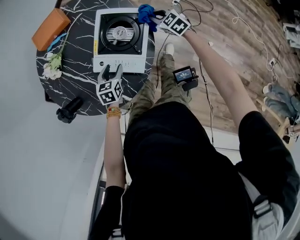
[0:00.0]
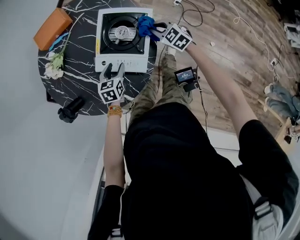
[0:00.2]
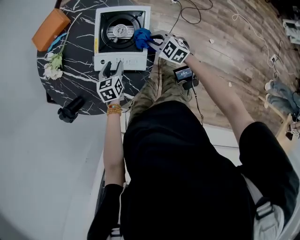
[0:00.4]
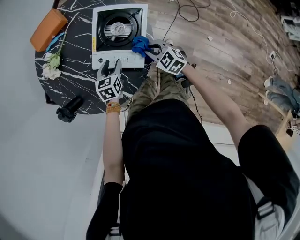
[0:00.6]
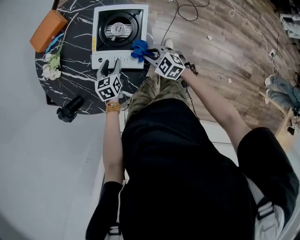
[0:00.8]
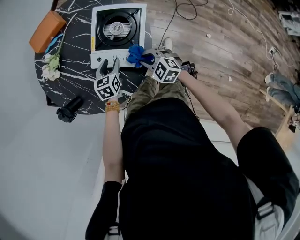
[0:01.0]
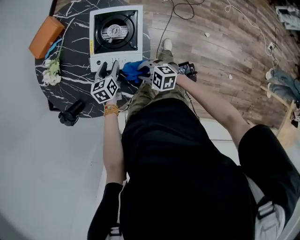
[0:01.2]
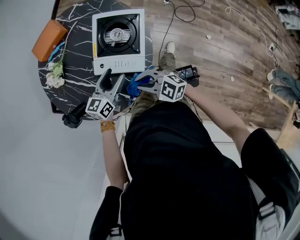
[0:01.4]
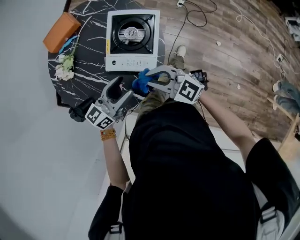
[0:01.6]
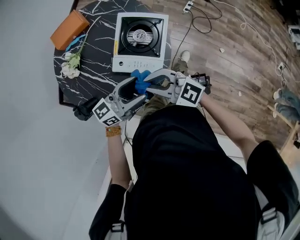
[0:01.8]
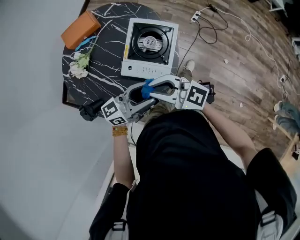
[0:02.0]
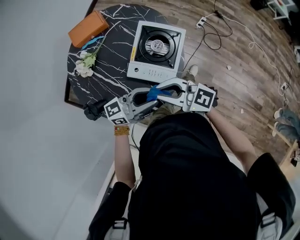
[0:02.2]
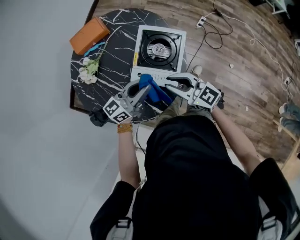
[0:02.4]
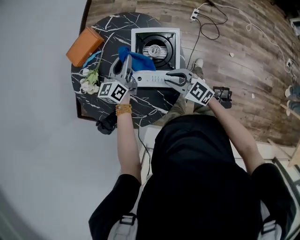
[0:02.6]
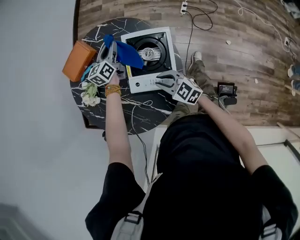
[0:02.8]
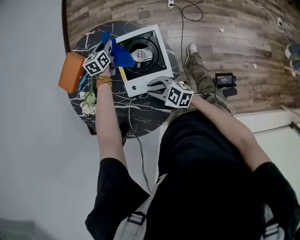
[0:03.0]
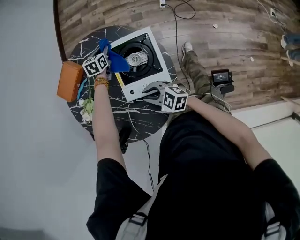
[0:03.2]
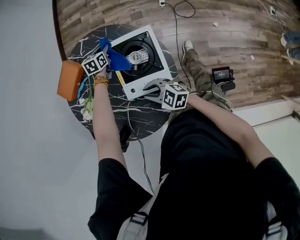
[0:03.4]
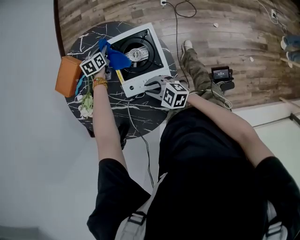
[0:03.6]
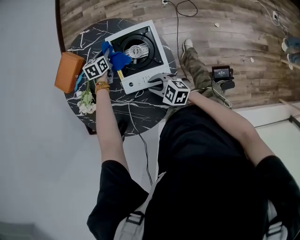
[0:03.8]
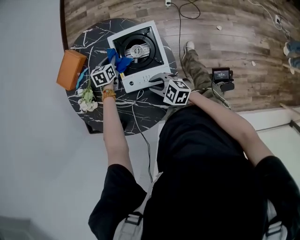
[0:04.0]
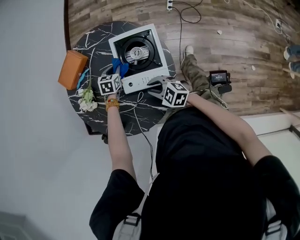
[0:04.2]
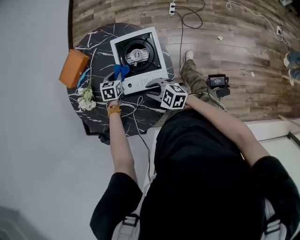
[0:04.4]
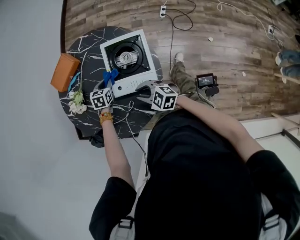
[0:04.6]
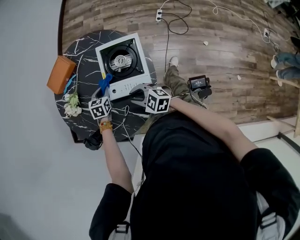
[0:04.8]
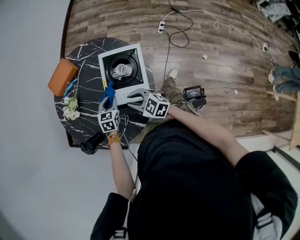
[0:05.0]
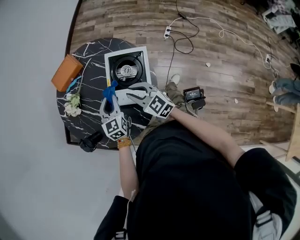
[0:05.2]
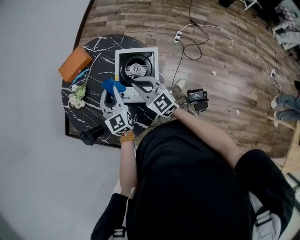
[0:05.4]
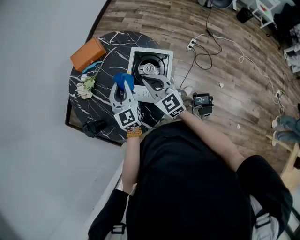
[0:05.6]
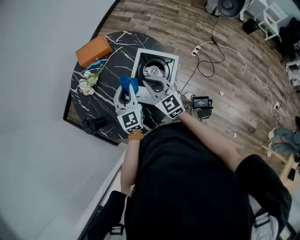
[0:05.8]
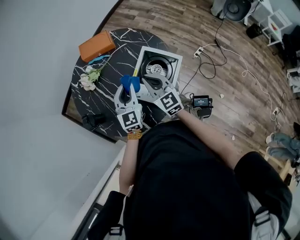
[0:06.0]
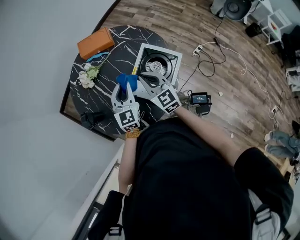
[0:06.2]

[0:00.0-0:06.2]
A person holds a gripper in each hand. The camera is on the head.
0:00.0 to 0:01.6: The left gripper moves upward, some 20 cm, and points its fingers approximately 40 degrees further upward. The right gripper travels backward, to the left and upward by approximately 35 cm, and changes its angle by some 30 degrees.
0:01.6 to 0:03.2: The left gripper moves approximately 40 cm, tilts its fingers approximately 40 degrees downward, and closes its fingers; the right gripper shifts by about 15 cm, and swivels roughly 20 degrees.
0:03.2 to 0:04.6: The left gripper heads backward and to the left, covering about 20 cm.
0:04.6 to 0:06.2: The left gripper heads upward, covering about 20 cm, and points its fingers some 40 degrees further upward. The right gripper goes about 15 cm upward and forward, and rotates some 20 degrees.

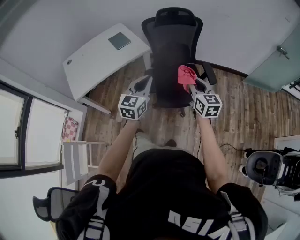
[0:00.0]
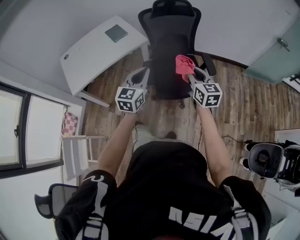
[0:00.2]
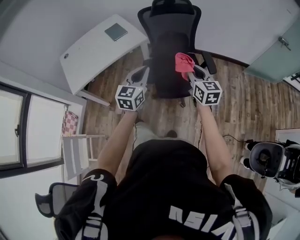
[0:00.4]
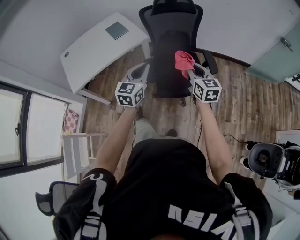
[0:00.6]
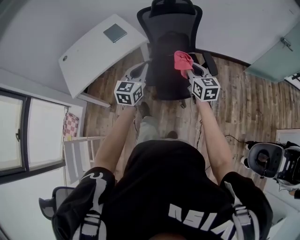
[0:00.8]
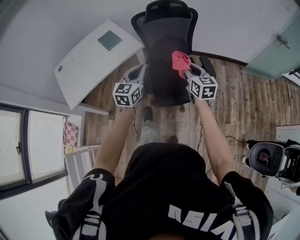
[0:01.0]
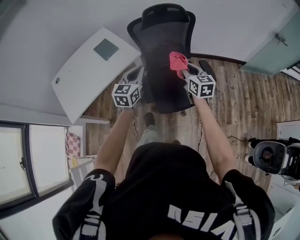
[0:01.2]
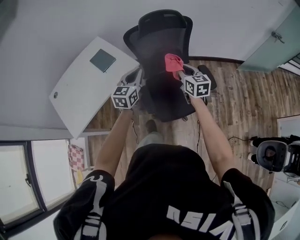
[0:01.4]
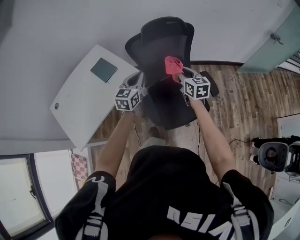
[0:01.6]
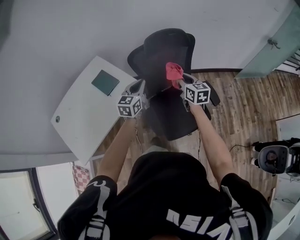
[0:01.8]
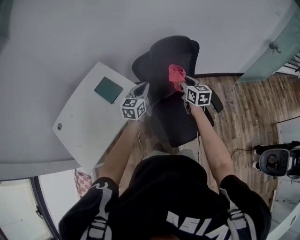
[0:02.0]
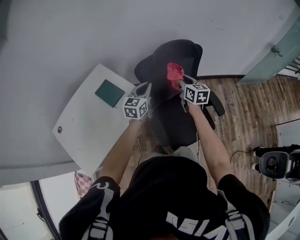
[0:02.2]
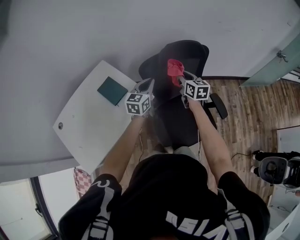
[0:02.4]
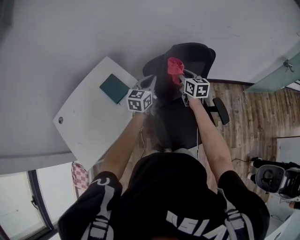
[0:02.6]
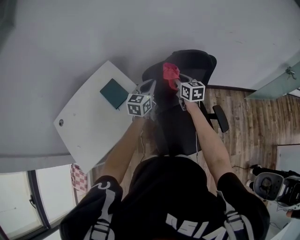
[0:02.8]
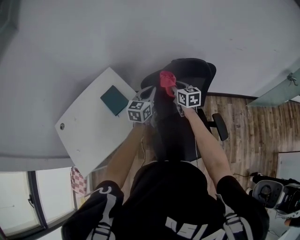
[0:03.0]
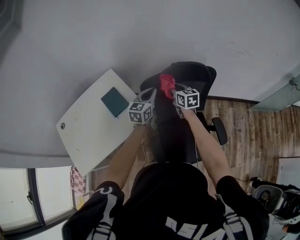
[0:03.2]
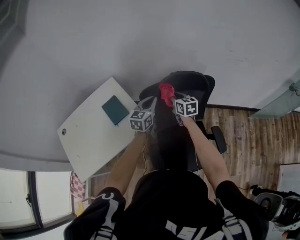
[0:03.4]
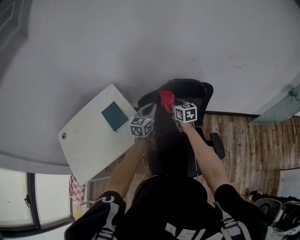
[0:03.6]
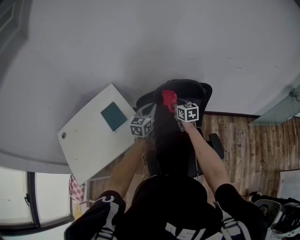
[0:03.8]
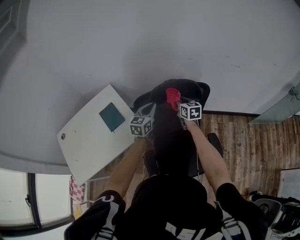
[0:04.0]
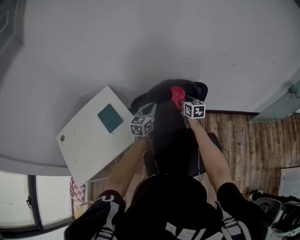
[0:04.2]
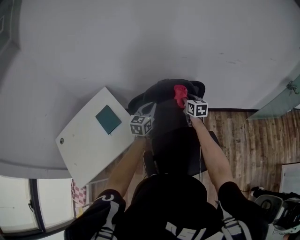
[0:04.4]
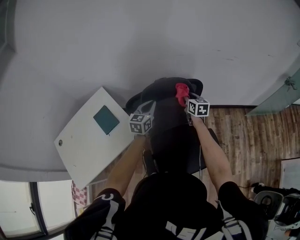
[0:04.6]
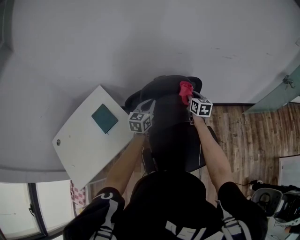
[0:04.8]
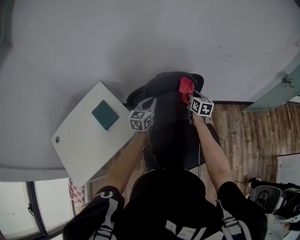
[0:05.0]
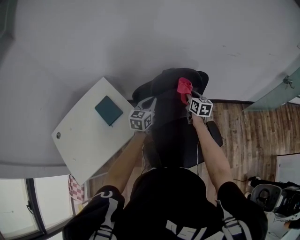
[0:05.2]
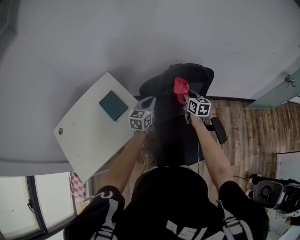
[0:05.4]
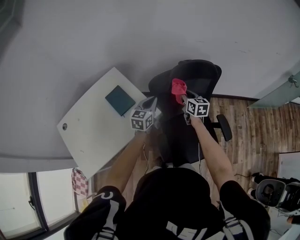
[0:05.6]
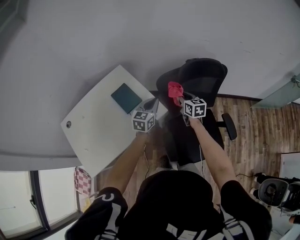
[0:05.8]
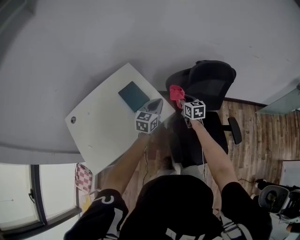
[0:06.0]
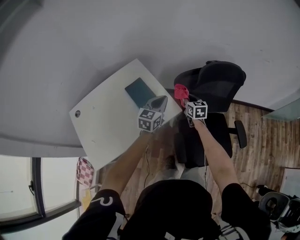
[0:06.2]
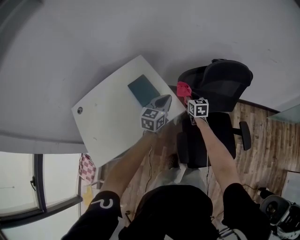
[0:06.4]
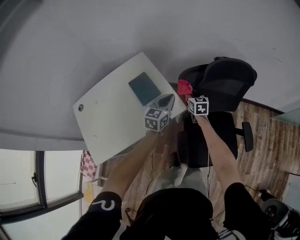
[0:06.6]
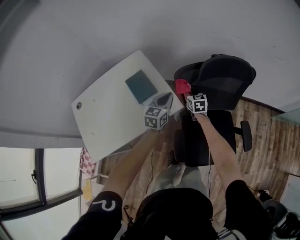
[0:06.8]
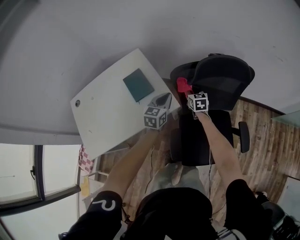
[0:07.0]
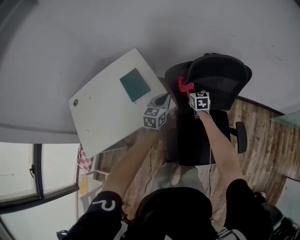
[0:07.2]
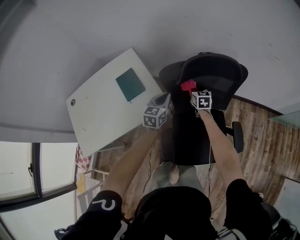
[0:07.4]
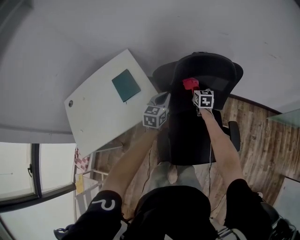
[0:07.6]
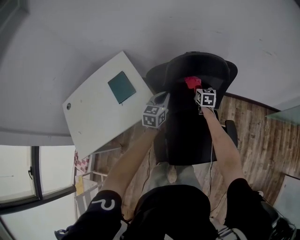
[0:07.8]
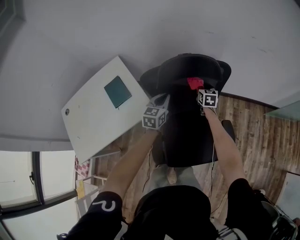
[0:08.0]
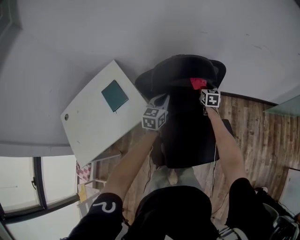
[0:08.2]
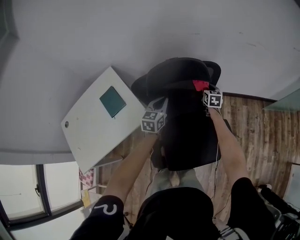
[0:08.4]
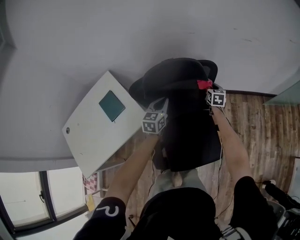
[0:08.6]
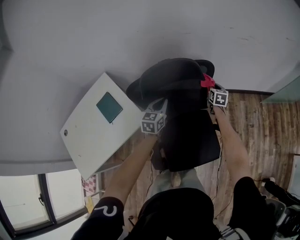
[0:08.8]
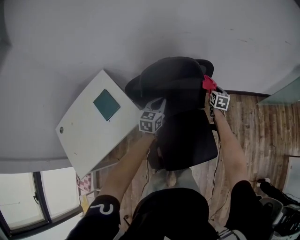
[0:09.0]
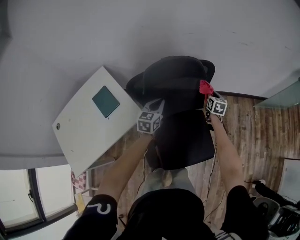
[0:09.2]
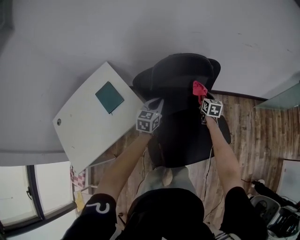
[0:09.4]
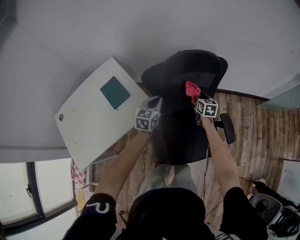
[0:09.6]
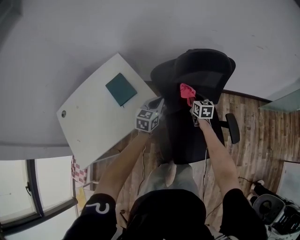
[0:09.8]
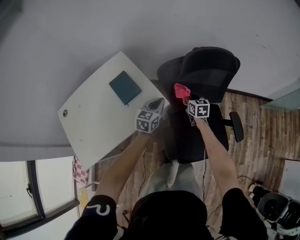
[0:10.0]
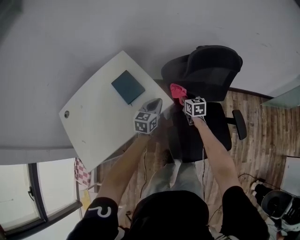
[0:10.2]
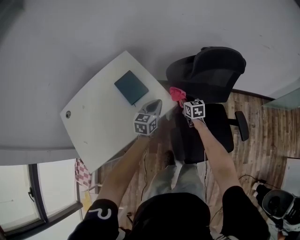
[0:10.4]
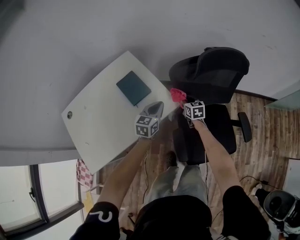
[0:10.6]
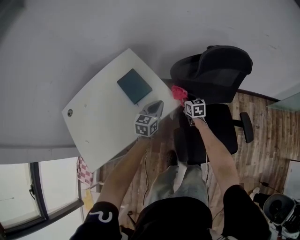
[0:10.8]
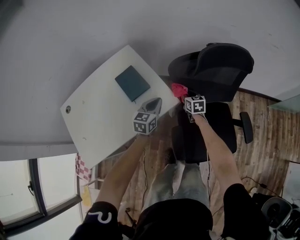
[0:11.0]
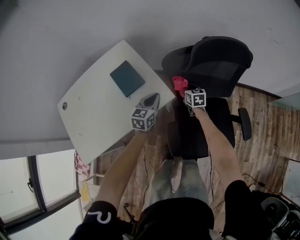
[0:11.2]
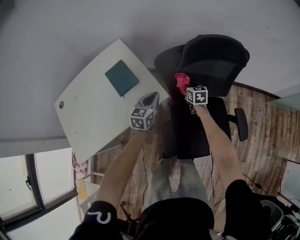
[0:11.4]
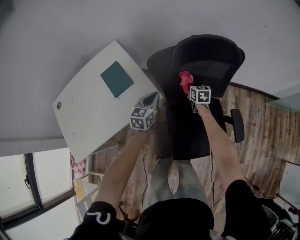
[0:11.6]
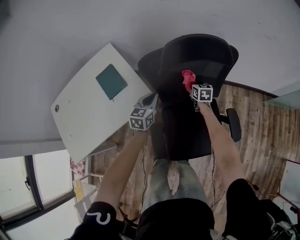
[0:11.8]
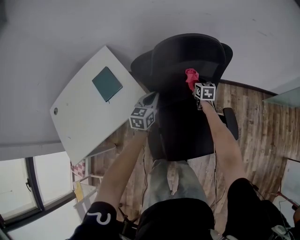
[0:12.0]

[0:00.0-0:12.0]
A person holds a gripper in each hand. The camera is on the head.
0:00.0 to 0:01.6: Both grippers travel together forward, about 35 cm.
0:01.6 to 0:03.0: The left gripper is displaced forward by approximately 20 cm; the right gripper shifts some 25 cm forward and to the left.
0:03.0 to 0:04.4: The right gripper moves to the right, roughly 15 cm; the left gripper goes some 10 cm to the right.
0:04.4 to 0:06.0: Both grippers travel together to the left and backward, approximately 25 cm.
0:06.0 to 0:07.6: The left gripper goes some 15 cm to the right and downward. The right gripper shifts about 20 cm to the right, forward and downward.
0:07.6 to 0:09.0: The left gripper moves to the right, about 10 cm; the right gripper shifts approximately 30 cm to the right, and changes its angle by about 20 degrees.
0:09.0 to 0:10.4: The right gripper is displaced to the left by some 40 cm, and swivels some 30 degrees. The left gripper heads to the left and backward, covering approximately 25 cm.
0:10.4 to 0:12.0: The left gripper heads to the right, covering about 15 cm. The right gripper moves to the right and forward, roughly 25 cm.

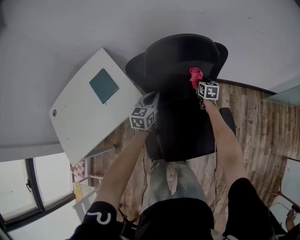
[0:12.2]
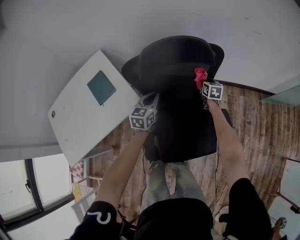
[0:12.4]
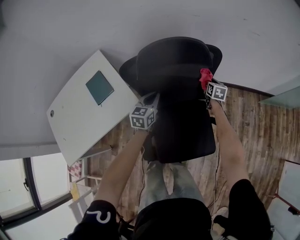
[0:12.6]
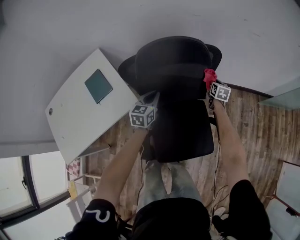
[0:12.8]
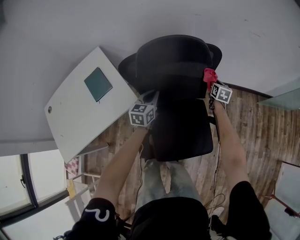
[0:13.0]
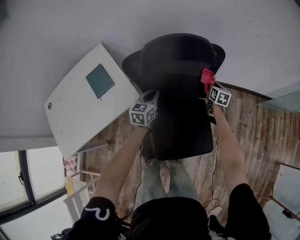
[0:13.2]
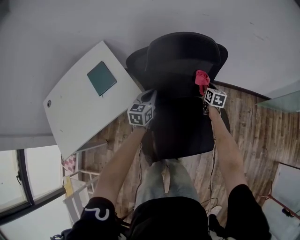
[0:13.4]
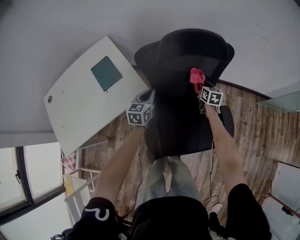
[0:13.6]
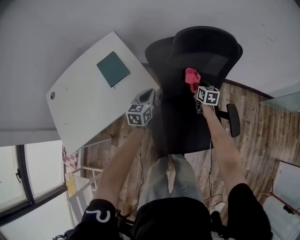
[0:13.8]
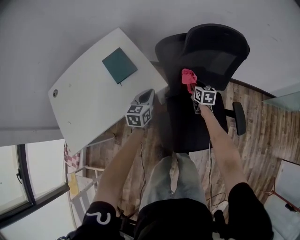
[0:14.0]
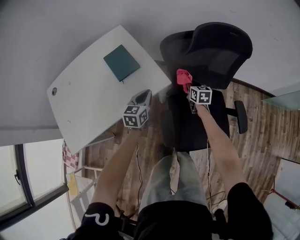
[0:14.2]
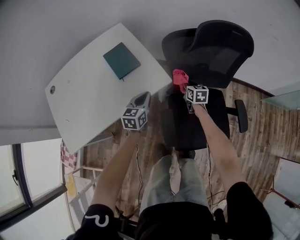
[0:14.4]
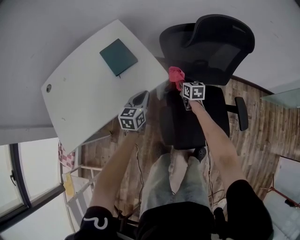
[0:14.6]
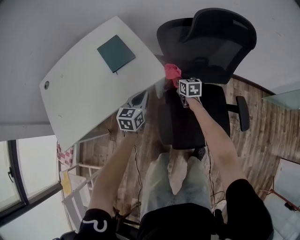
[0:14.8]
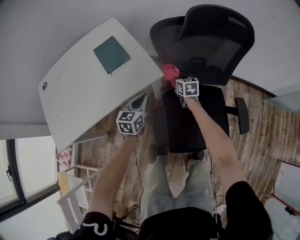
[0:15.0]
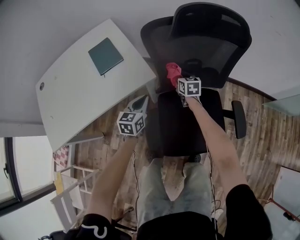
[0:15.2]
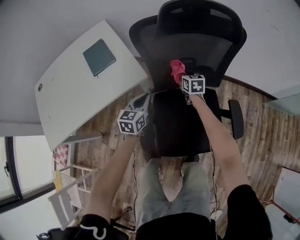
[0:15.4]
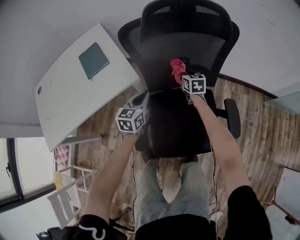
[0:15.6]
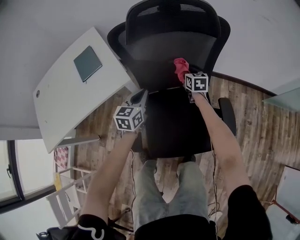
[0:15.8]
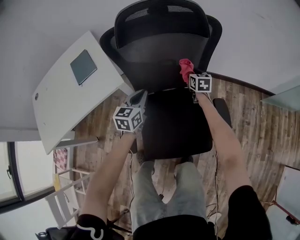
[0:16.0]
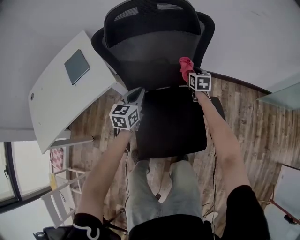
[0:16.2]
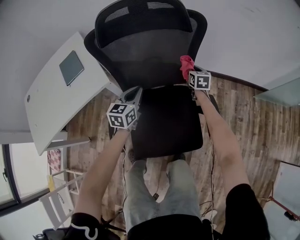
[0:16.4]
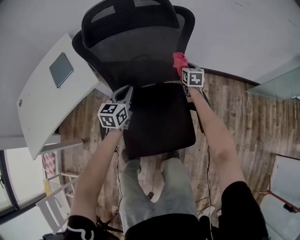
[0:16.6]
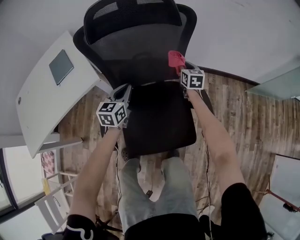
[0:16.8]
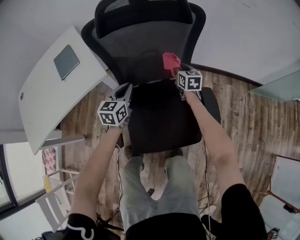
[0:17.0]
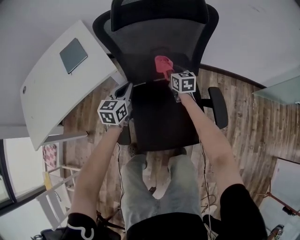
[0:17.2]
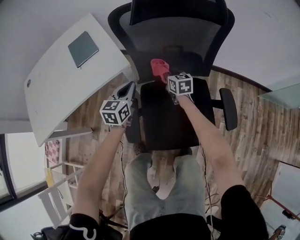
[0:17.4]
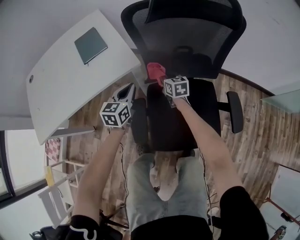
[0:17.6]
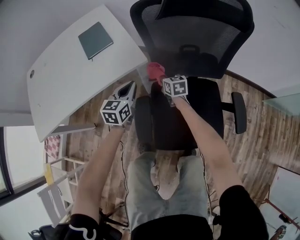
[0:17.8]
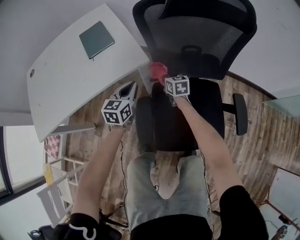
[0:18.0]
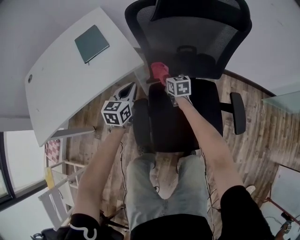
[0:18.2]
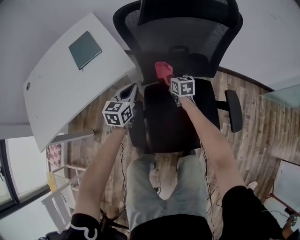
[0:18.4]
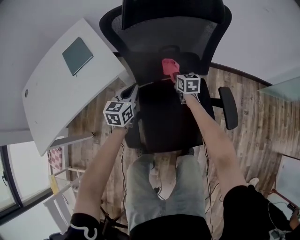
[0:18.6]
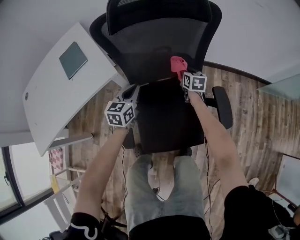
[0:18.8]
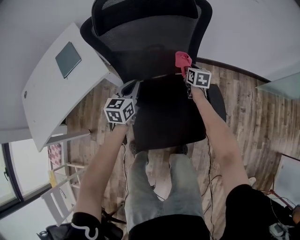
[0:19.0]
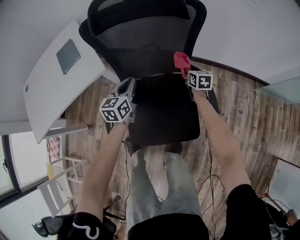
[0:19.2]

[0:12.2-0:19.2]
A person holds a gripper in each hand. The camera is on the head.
0:12.2 to 0:13.6: The right gripper moves backward, roughly 5 cm, and reaches about 15 cm to the right, then returns. Meanwhile the left gripper goes some 5 cm to the left.
0:13.6 to 0:15.0: The right gripper heads to the left and downward, covering roughly 25 cm, while the left gripper is displaced to the left, downward and backward by roughly 15 cm.
0:15.0 to 0:16.4: The two grippers go approximately 30 cm to the right.
0:16.4 to 0:17.8: The right gripper goes about 35 cm to the left, and changes its angle by roughly 20 degrees, while the left gripper heads to the left, covering approximately 20 cm.
0:17.8 to 0:19.2: The left gripper travels to the right by about 20 cm. Meanwhile the right gripper is displaced to the right by about 35 cm.
